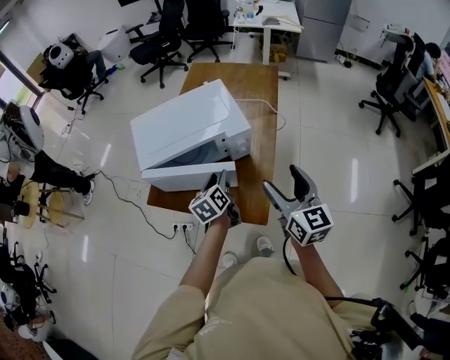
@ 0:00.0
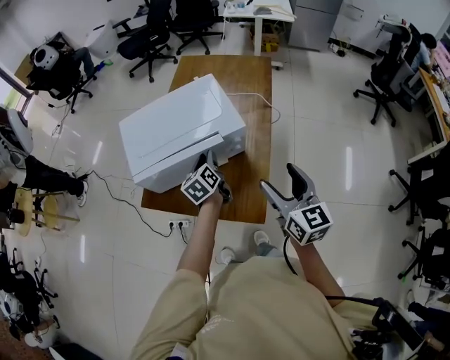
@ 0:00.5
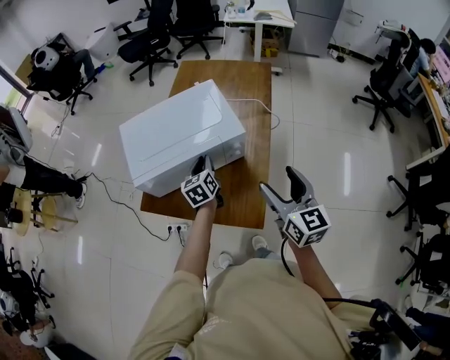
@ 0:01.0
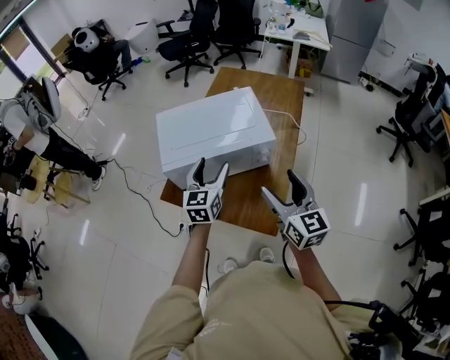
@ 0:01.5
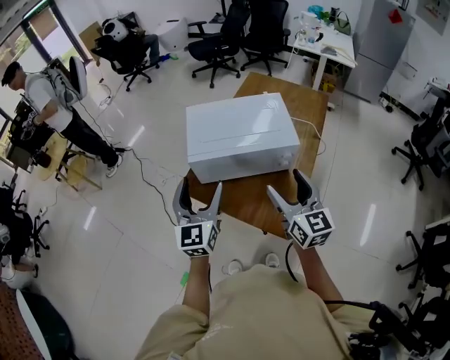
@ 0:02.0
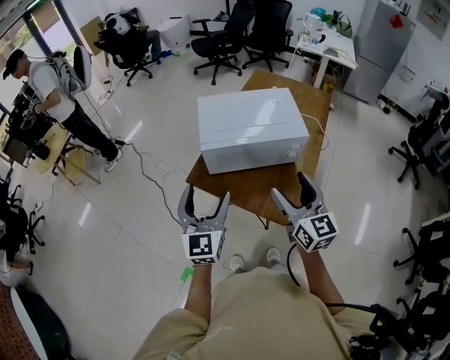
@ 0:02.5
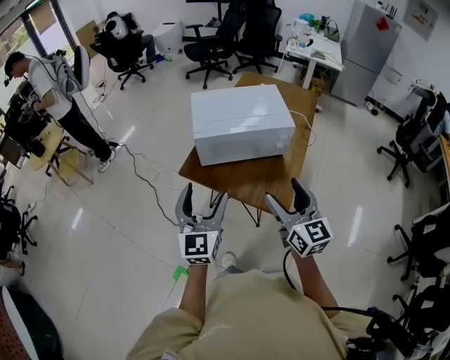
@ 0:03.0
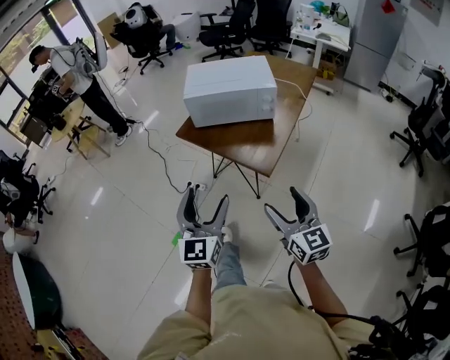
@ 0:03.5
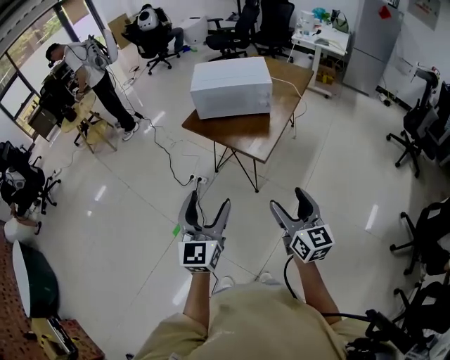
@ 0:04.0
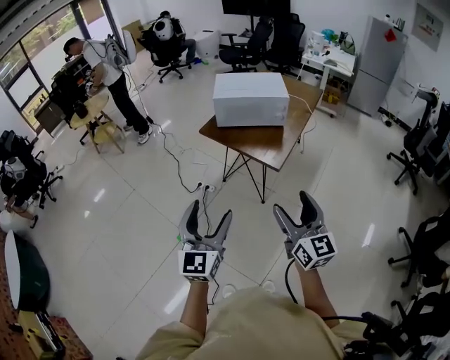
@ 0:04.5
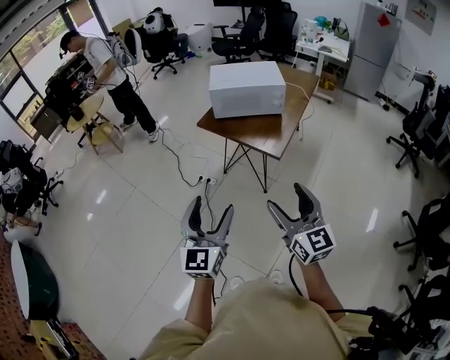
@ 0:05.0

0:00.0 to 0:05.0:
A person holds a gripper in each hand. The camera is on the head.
0:00.0 to 0:02.5: The left gripper goes about 35 cm to the left, backward and upward, tips its fingers upward by roughly 30 degrees, and opens up. Meanwhile the right gripper heads to the left and backward, covering approximately 20 cm.
0:02.5 to 0:05.0: The two grippers travel together, backward, some 60 cm.

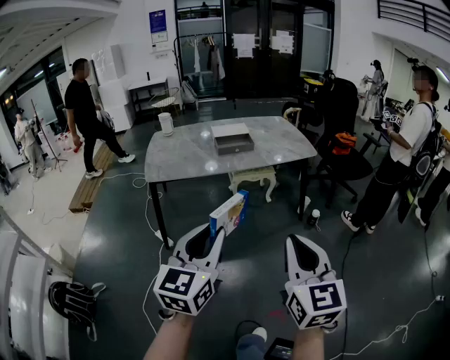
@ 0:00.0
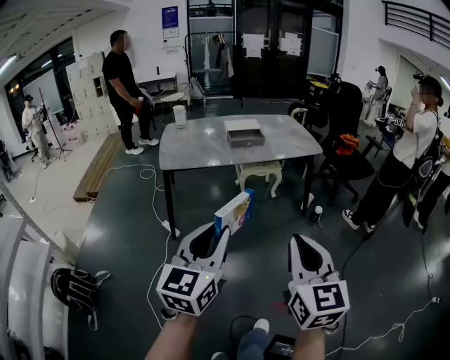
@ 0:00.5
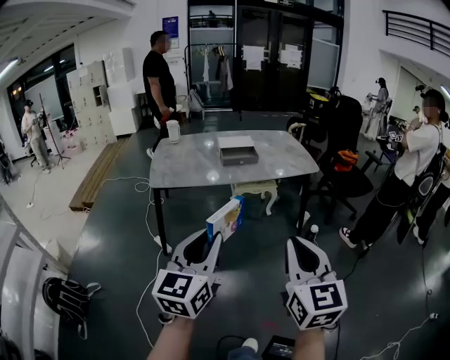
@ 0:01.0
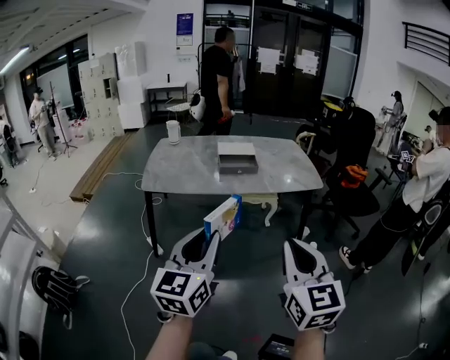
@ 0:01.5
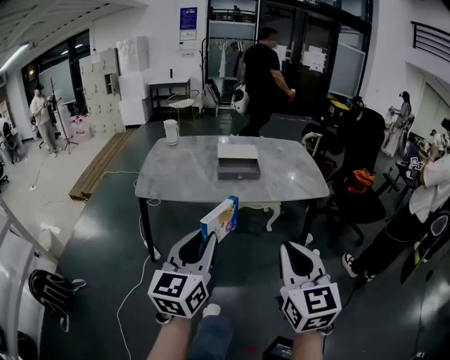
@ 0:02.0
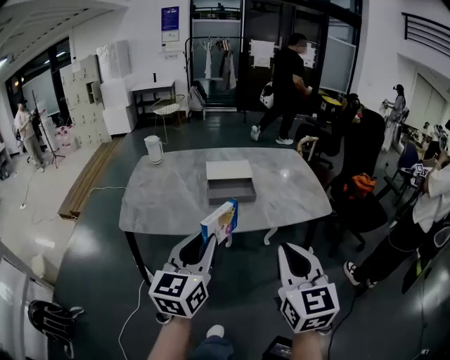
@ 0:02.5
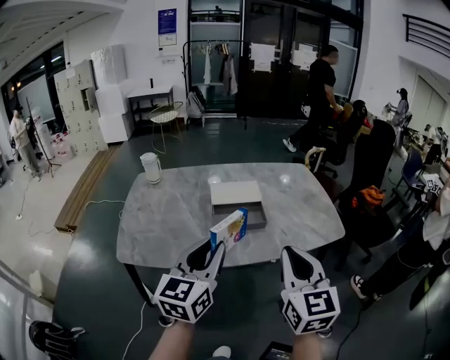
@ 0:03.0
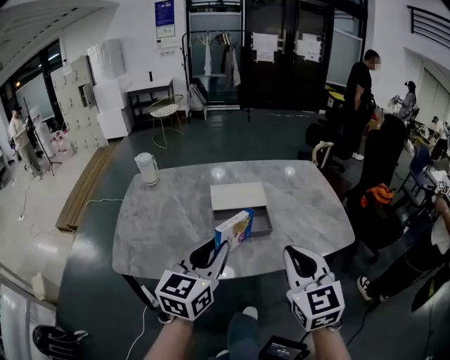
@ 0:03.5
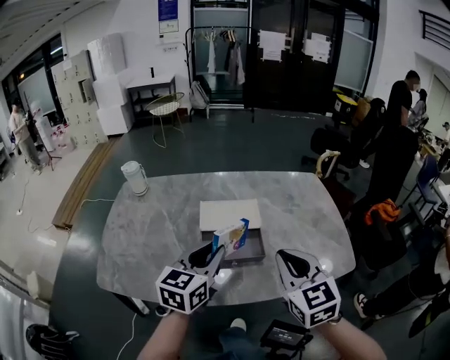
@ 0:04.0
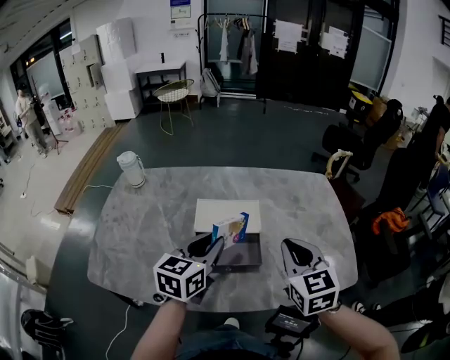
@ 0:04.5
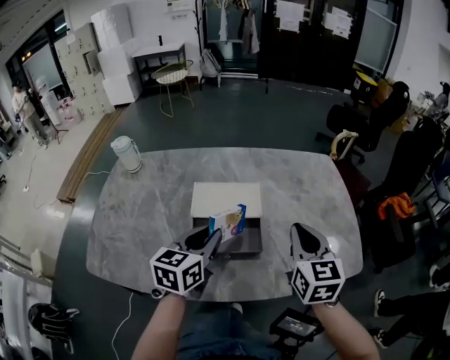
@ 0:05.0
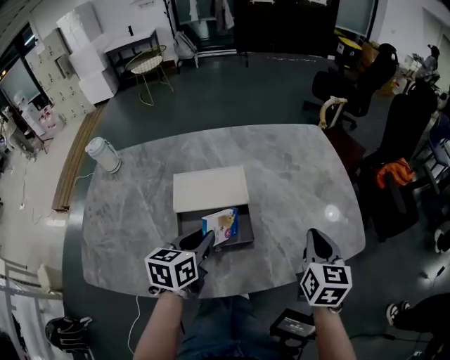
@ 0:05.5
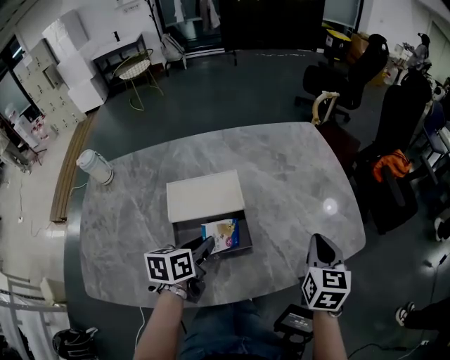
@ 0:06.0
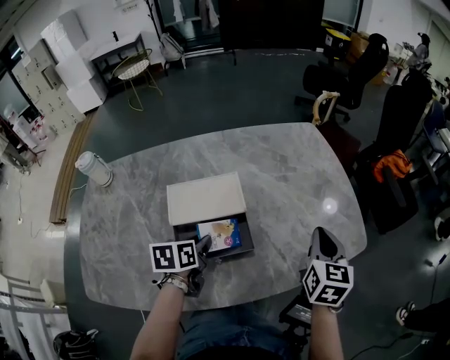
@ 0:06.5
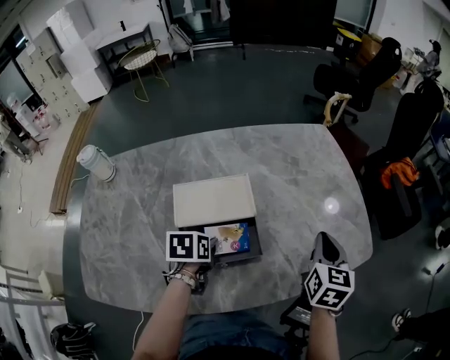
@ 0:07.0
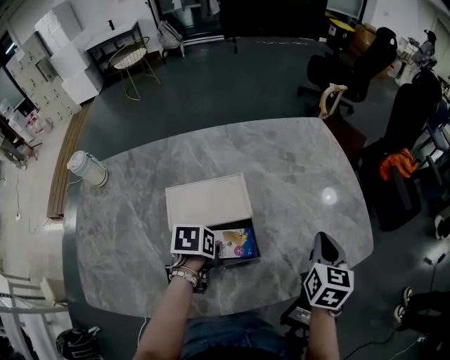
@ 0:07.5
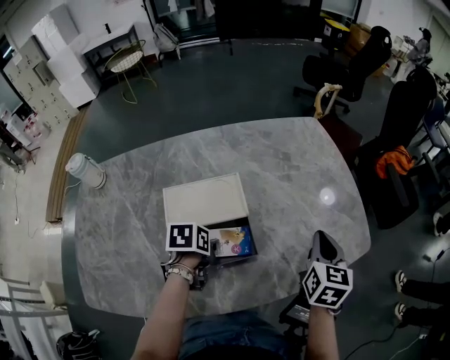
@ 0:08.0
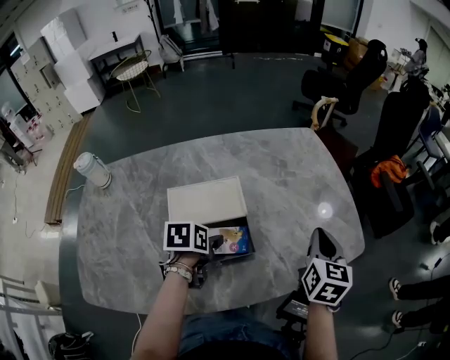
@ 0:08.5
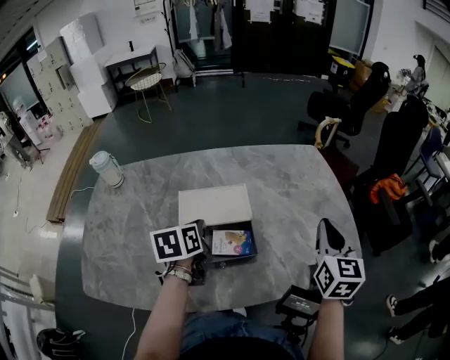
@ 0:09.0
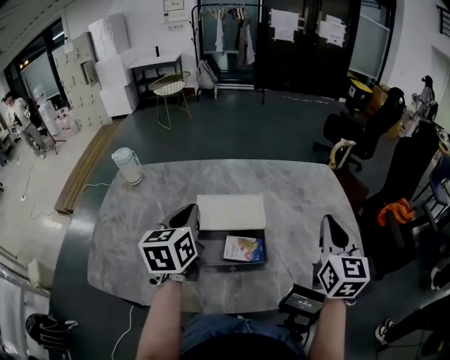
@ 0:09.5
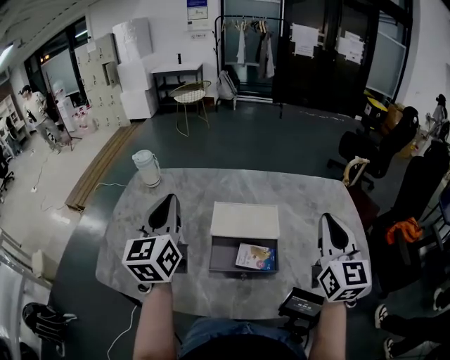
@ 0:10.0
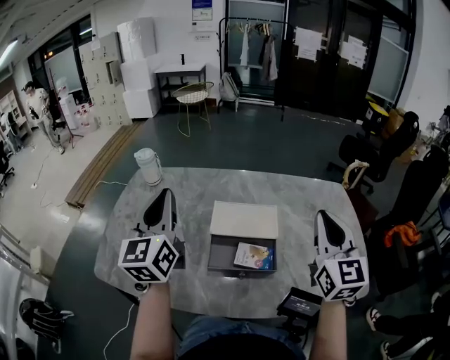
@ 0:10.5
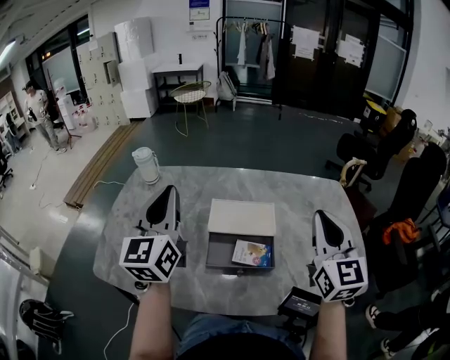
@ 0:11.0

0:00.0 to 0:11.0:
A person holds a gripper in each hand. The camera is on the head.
0:00.0 to 0:02.0: Both grippers move forward, about 20 cm.
0:02.0 to 0:03.5: Both grippers travel together forward, about 35 cm.
0:03.5 to 0:05.5: The left gripper moves forward and downward, approximately 25 cm, and turns by roughly 30 degrees; the right gripper travels forward, to the right and downward by about 30 cm, and changes its angle by approximately 30 degrees.
0:05.5 to 0:07.5: The left gripper goes about 10 cm downward, and tips its fingers downward by roughly 40 degrees. Meanwhile the right gripper changes place by approximately 5 cm.
0:07.5 to 0:09.0: Both grippers move upward, some 10 cm. The left gripper rotates some 40 degrees, and closes its fingers. Meanwhile the right gripper rotates some 20 degrees.
0:09.0 to 0:11.0: The left gripper is displaced upward and to the left by roughly 25 cm, and points its fingers some 50 degrees further upward. The right gripper travels to the left and upward by approximately 15 cm, and rotates some 30 degrees.

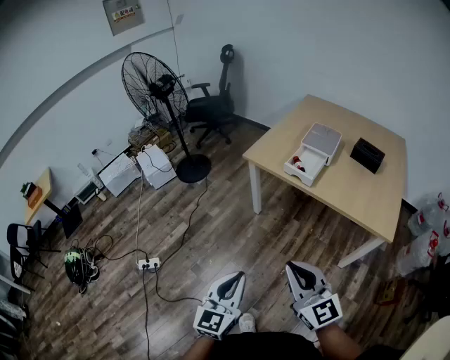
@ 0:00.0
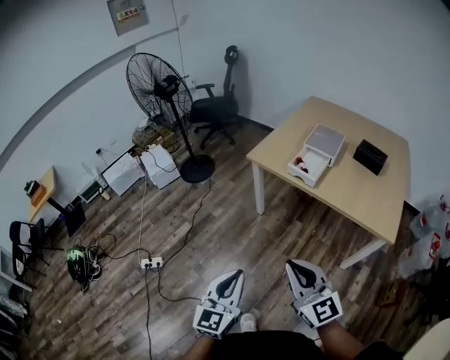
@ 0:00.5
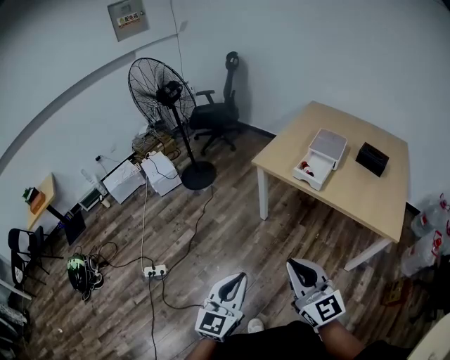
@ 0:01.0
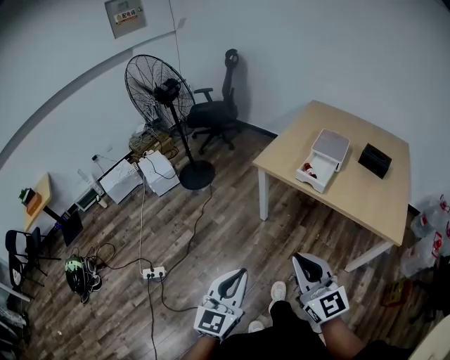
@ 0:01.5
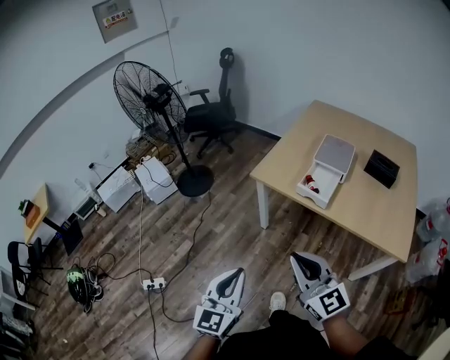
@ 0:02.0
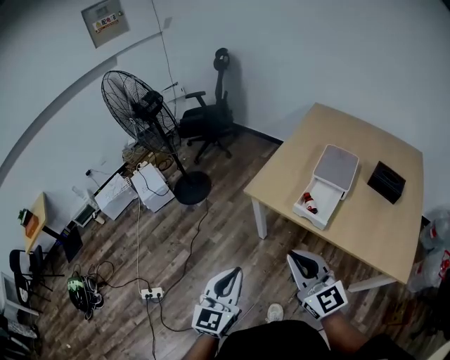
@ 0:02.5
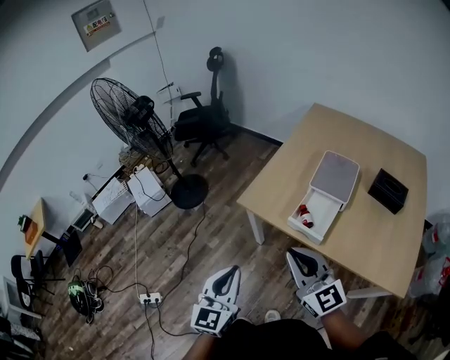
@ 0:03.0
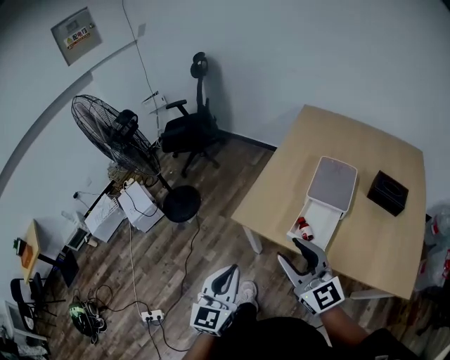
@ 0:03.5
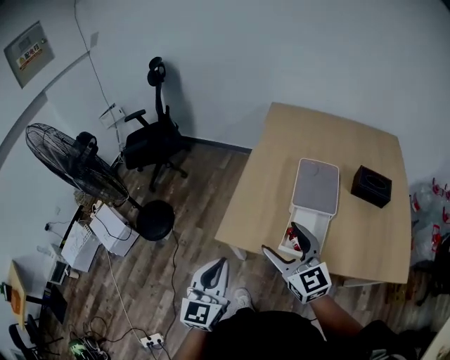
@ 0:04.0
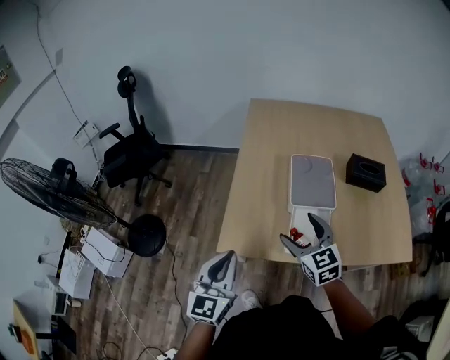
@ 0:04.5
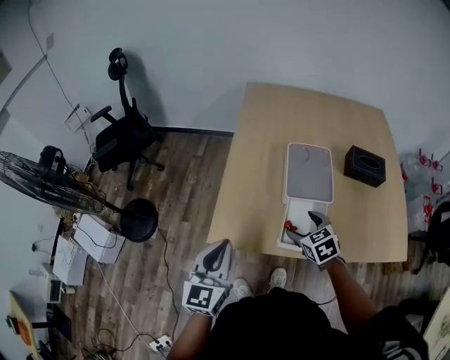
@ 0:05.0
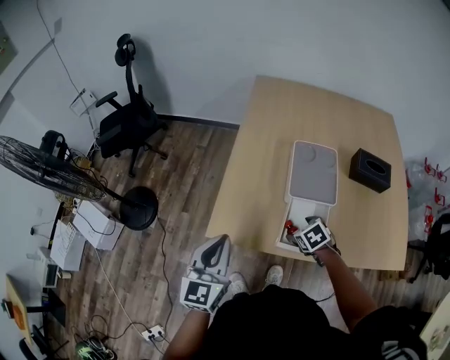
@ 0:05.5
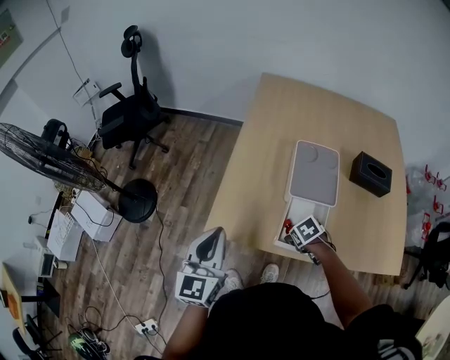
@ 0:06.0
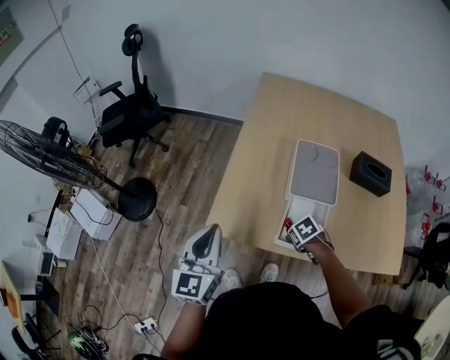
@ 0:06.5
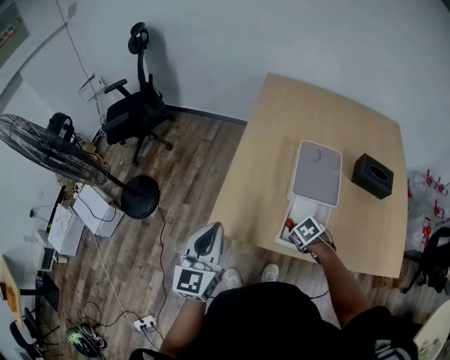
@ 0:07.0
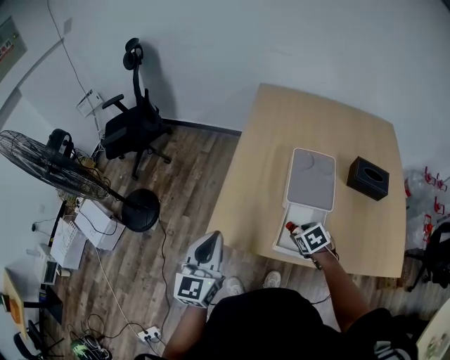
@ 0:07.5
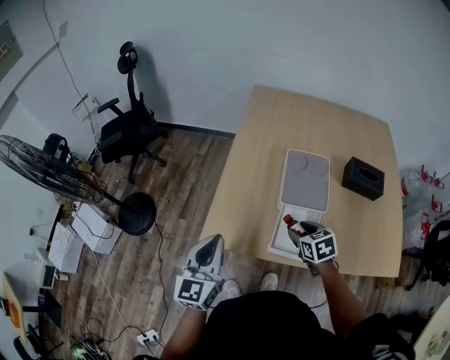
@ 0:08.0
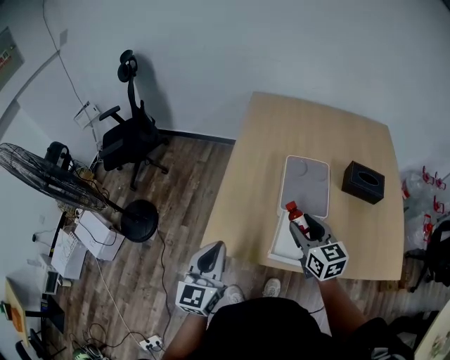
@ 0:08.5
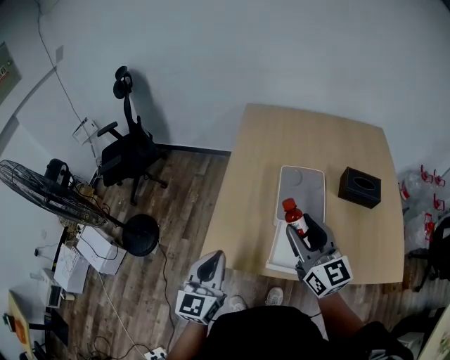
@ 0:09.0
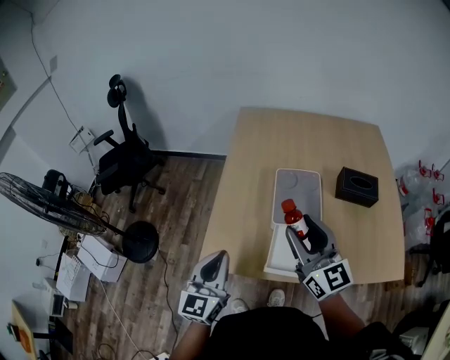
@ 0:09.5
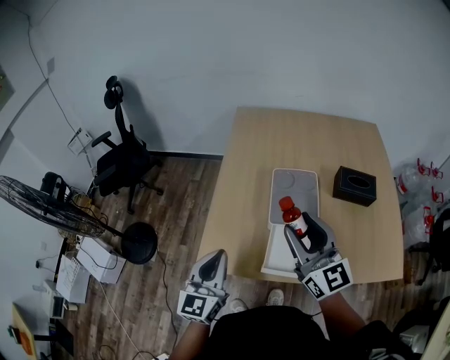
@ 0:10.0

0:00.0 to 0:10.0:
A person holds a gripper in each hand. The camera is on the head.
0:00.0 to 0:02.0: Both grippers move forward, some 15 cm.
0:02.0 to 0:04.0: Both grippers move forward, some 40 cm. The right gripper turns by about 20 degrees, and opens.
0:04.0 to 0:06.0: The left gripper changes place by roughly 10 cm; the right gripper shifts roughly 30 cm downward, and tips its fingers downward by roughly 70 degrees.
0:06.0 to 0:08.0: The right gripper is displaced upward by roughly 10 cm, rotates roughly 30 degrees, and closes up.
0:08.0 to 0:10.0: The right gripper shifts some 25 cm upward, and tilts its fingers some 60 degrees upward; the left gripper changes place by roughly 5 cm.
